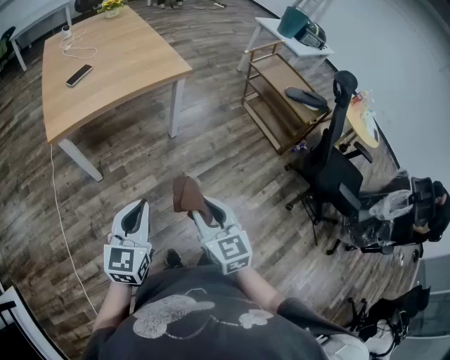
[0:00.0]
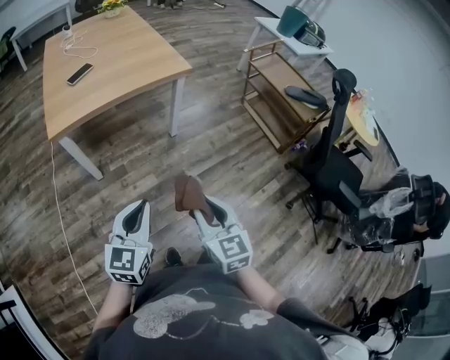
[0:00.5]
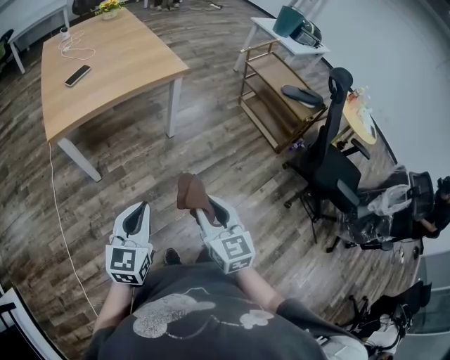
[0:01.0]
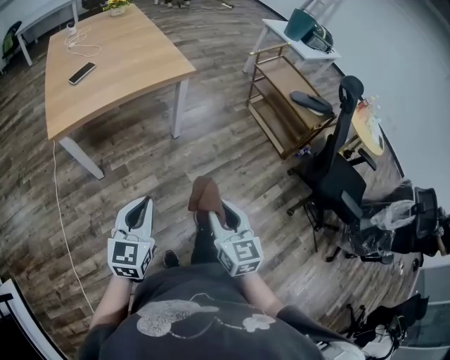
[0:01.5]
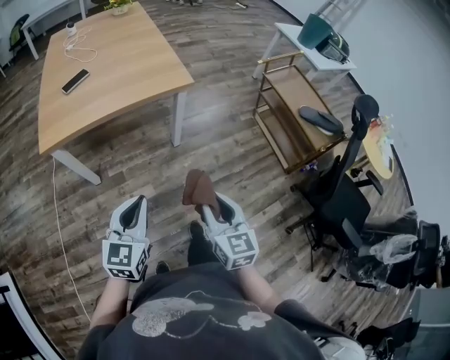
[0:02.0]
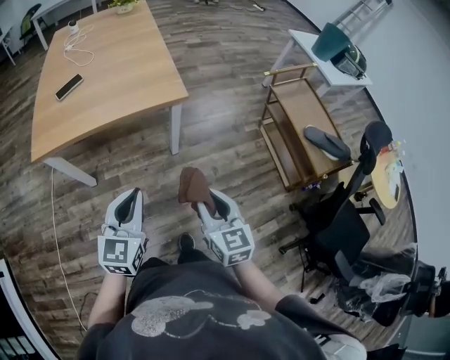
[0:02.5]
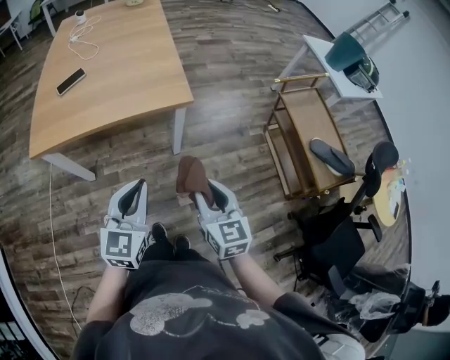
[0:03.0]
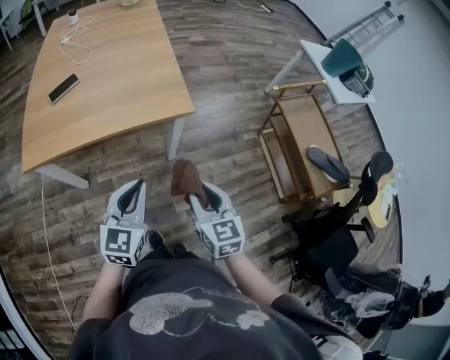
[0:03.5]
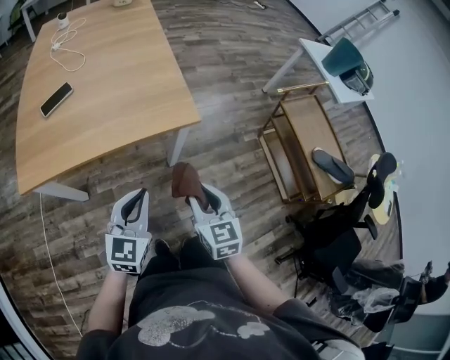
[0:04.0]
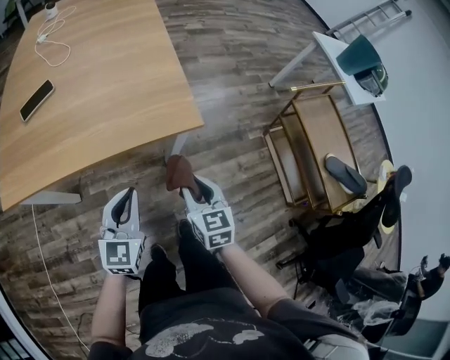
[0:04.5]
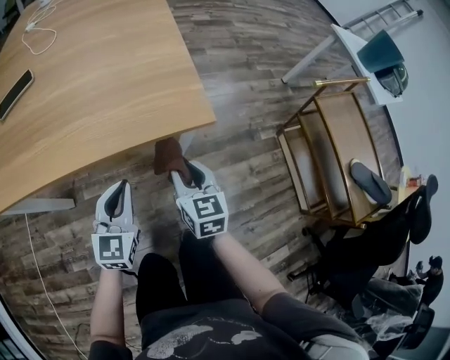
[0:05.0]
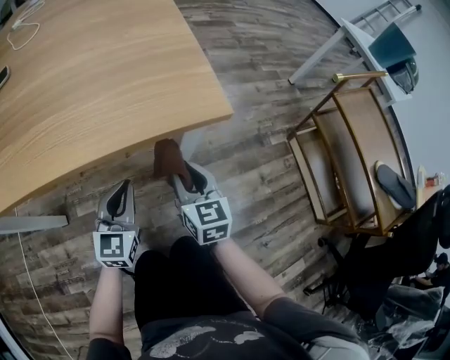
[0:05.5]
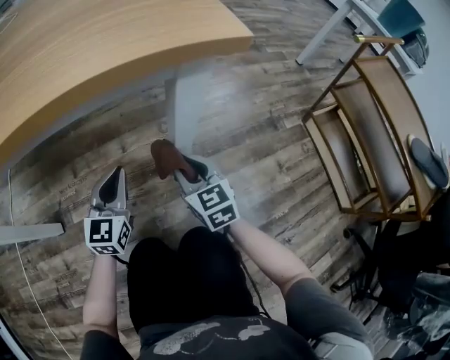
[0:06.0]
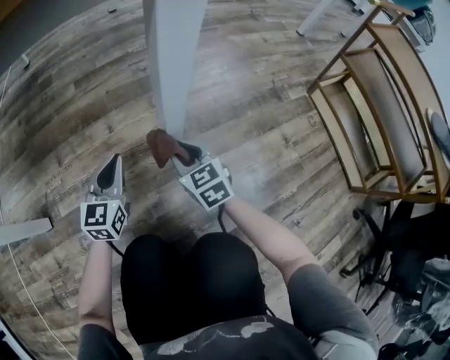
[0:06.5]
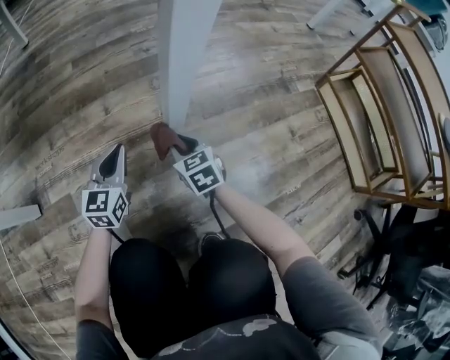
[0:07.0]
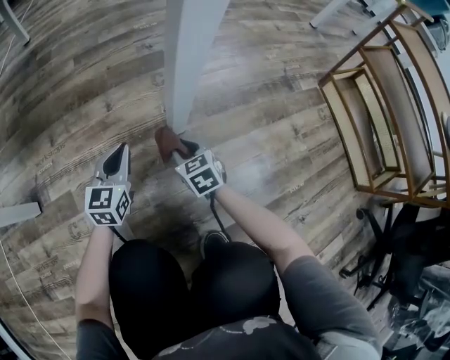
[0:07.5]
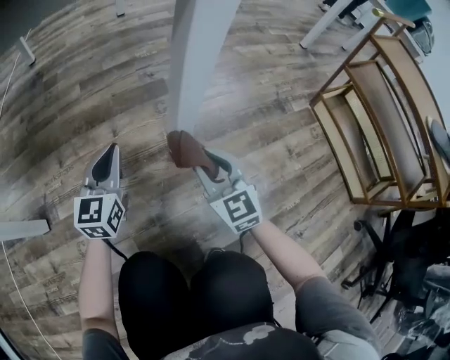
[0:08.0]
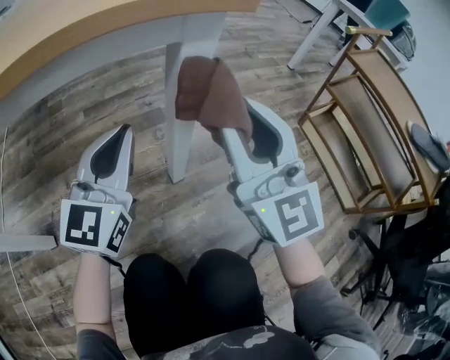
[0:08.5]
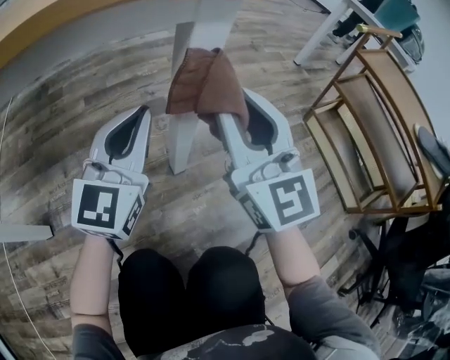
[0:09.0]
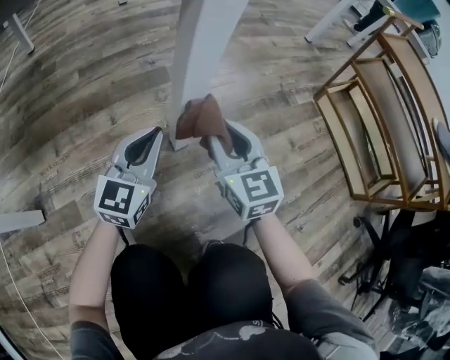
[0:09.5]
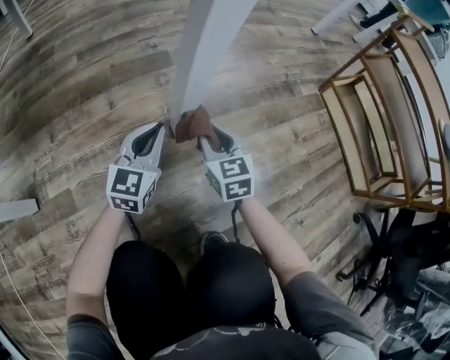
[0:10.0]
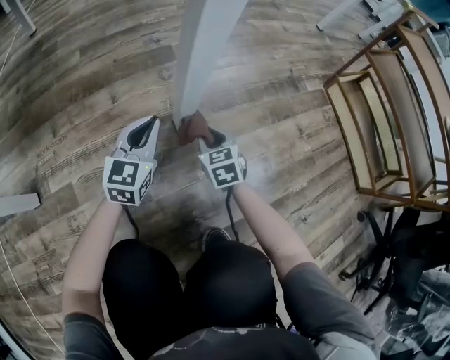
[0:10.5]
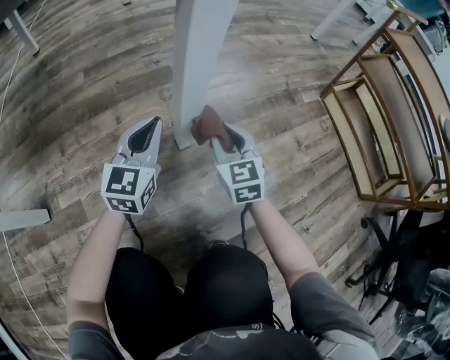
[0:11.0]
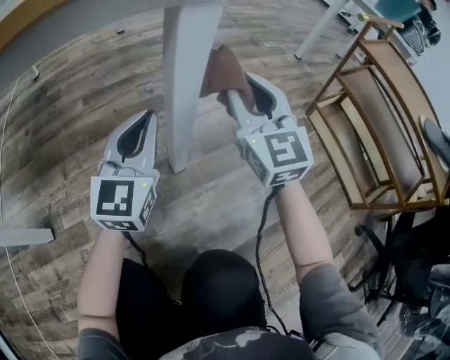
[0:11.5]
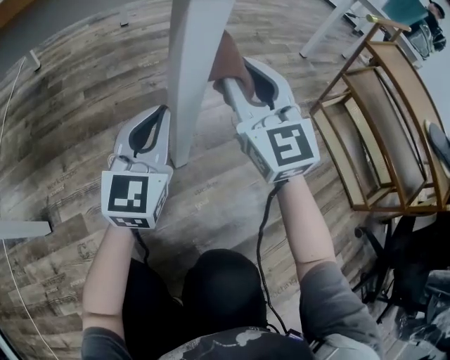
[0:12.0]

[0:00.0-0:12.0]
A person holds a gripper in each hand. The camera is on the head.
0:00.0 to 0:02.0: Both grippers move forward and to the right, approximately 15 cm.
0:02.0 to 0:04.0: Both grippers move forward, roughly 25 cm.
0:04.0 to 0:06.0: The grippers both shift downward and forward by about 50 cm.
0:06.0 to 0:08.0: The right gripper travels downward and back again, about 25 cm each way; the left gripper shifts some 10 cm downward.
0:08.0 to 0:10.0: The right gripper moves some 30 cm upward and comes back, and rotates approximately 20 degrees, while the left gripper is displaced to the right by about 10 cm, and reaches some 20 cm upward, then returns.
0:10.0 to 0:12.0: The right gripper shifts approximately 30 cm upward, and points its fingers about 30 degrees further upward; the left gripper heads upward, covering approximately 20 cm.

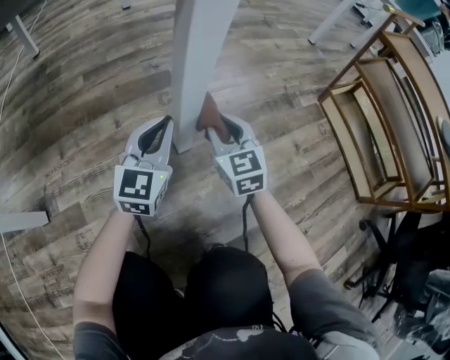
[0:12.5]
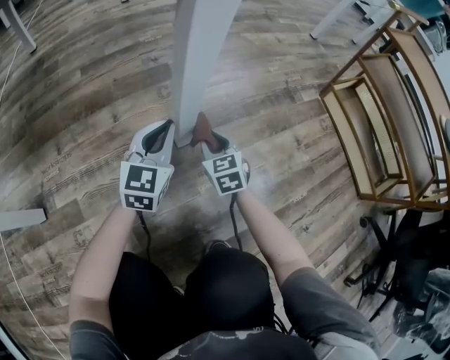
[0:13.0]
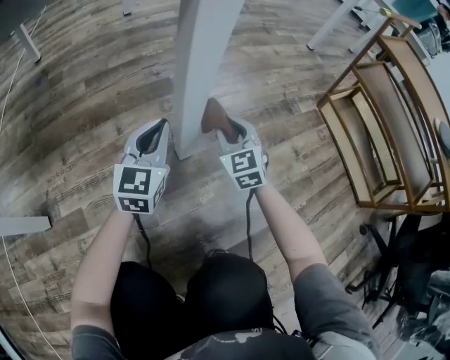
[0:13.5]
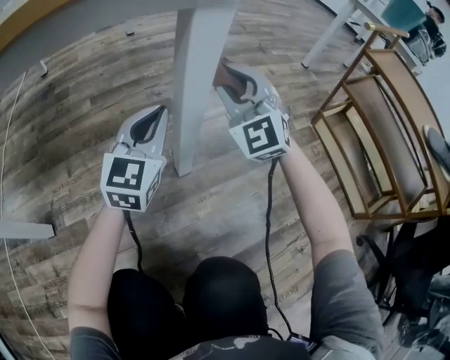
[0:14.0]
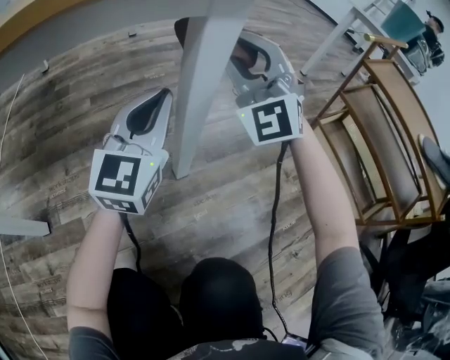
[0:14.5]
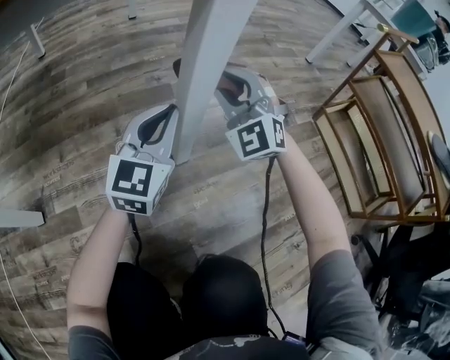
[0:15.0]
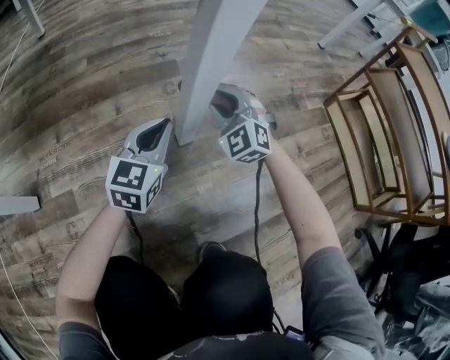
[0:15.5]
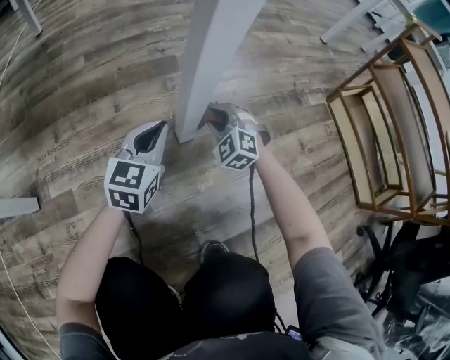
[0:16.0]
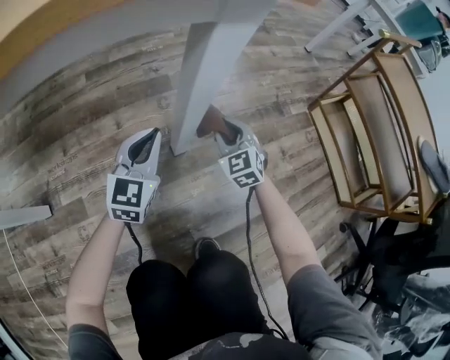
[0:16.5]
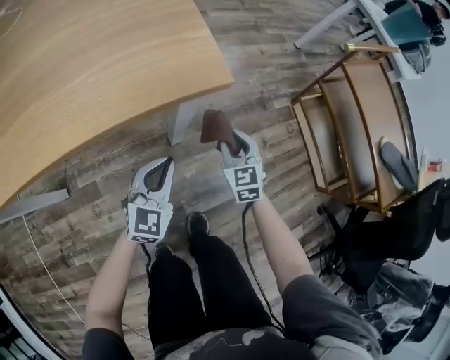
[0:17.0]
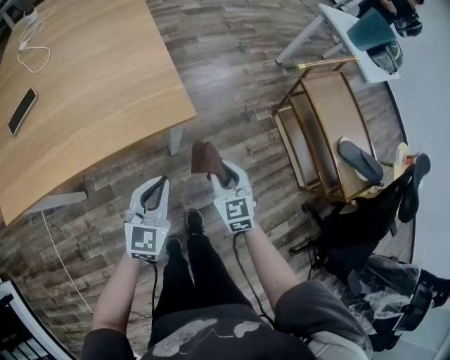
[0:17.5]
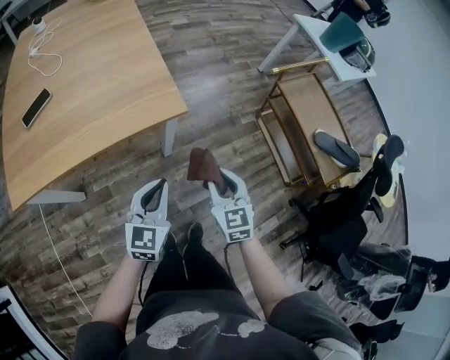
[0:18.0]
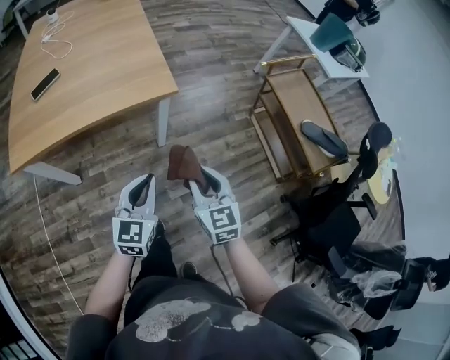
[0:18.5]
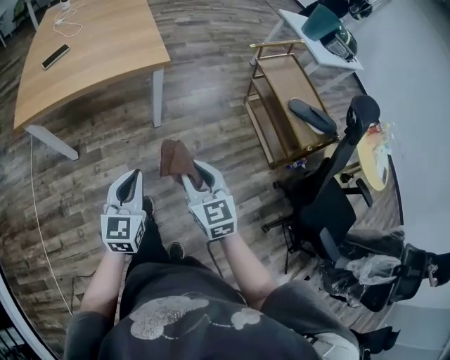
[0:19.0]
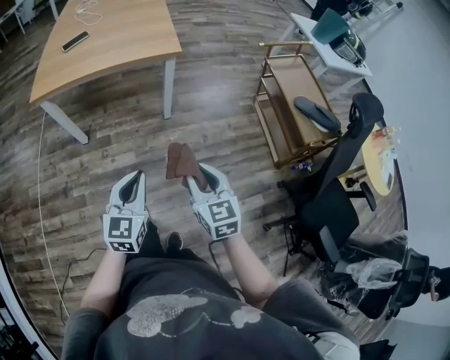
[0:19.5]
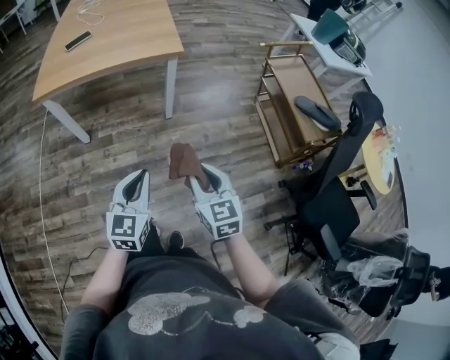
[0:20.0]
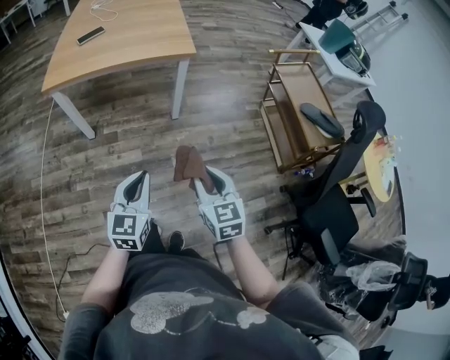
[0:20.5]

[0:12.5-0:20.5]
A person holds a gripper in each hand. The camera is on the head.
0:12.5 to 0:14.5: The right gripper moves upward, about 30 cm, and rotates around the line of its fingers by roughly 50 degrees, counterclockwise from behind. Meanwhile the left gripper shifts some 20 cm upward.
0:14.5 to 0:16.5: The left gripper goes roughly 15 cm downward. Meanwhile the right gripper heads downward, covering about 30 cm, and tips its fingers downward by about 40 degrees.
0:16.5 to 0:18.5: Both grippers travel together upward and backward, approximately 60 cm. The right gripper rotates about 30 degrees.
0:18.5 to 0:20.5: Both grippers travel together backward, some 25 cm.

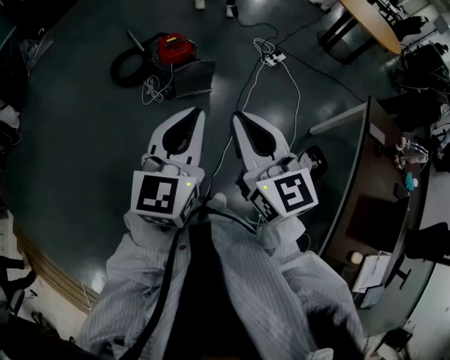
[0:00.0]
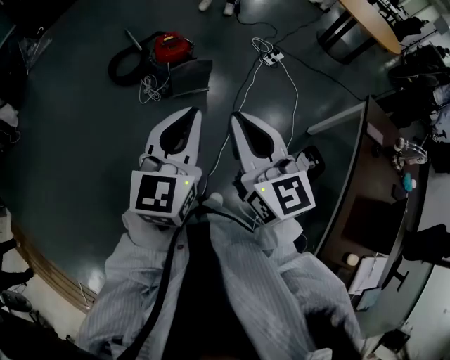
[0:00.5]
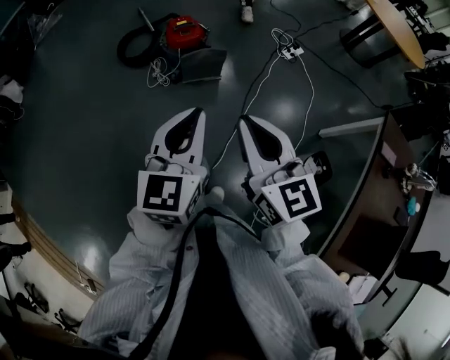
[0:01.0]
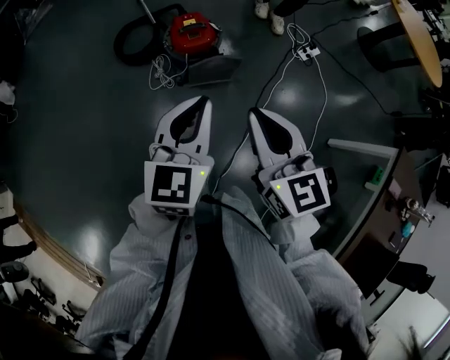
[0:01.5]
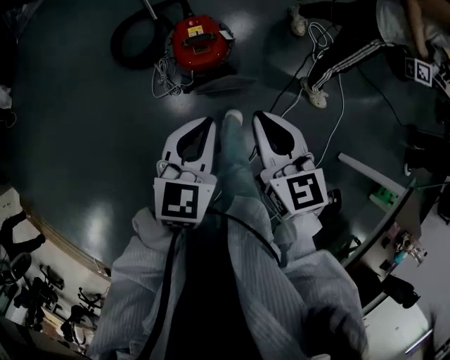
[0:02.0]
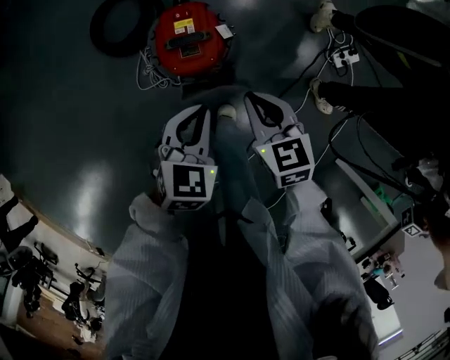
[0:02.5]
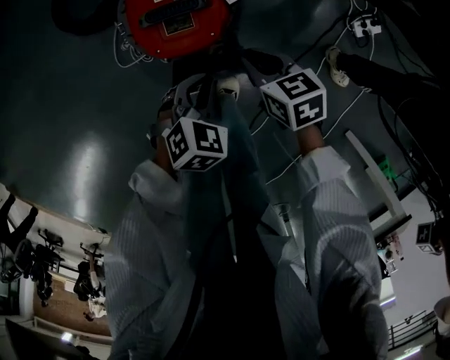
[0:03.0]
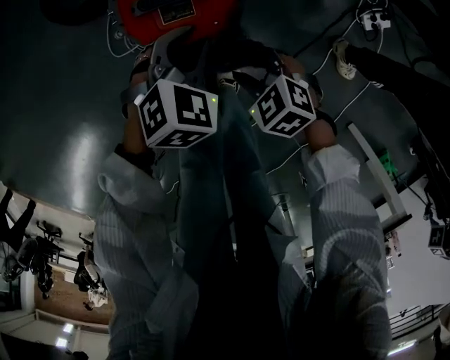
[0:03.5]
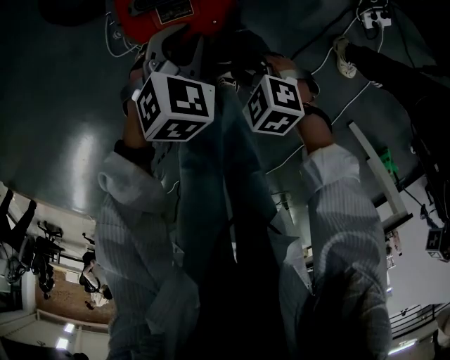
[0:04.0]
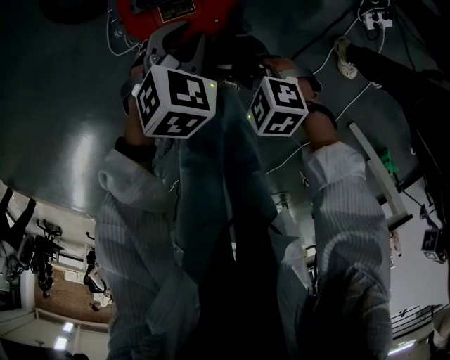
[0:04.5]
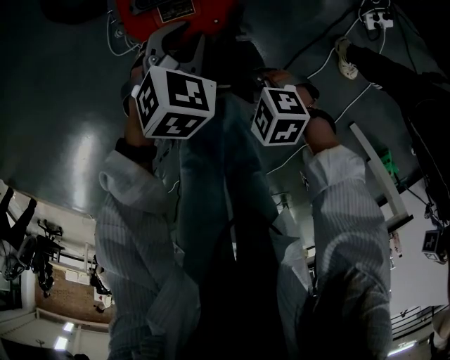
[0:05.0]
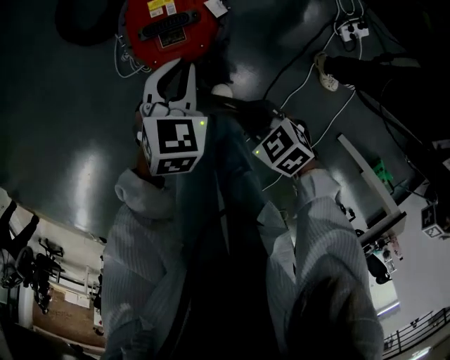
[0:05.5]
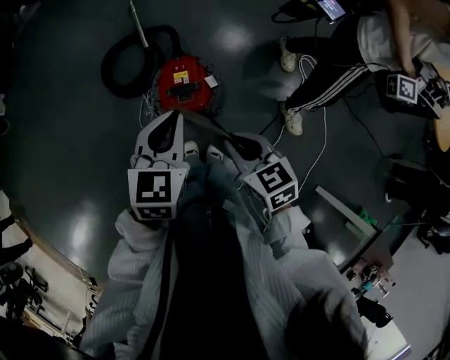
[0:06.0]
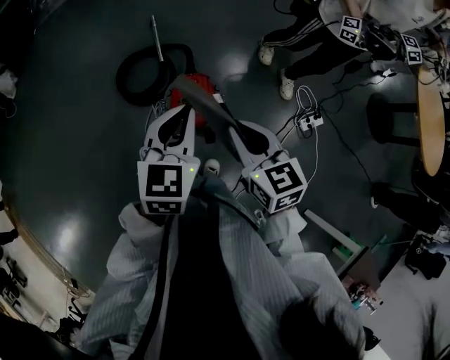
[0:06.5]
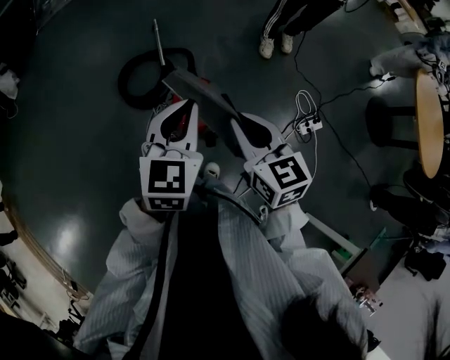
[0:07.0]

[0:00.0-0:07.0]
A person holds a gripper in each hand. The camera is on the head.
0:00.0 to 0:02.0: The two grippers travel together, forward, about 50 cm. Both grippers travel together downward, roughly 25 cm. The left gripper changes its angle by about 20 degrees. The right gripper turns by some 20 degrees.
0:02.0 to 0:03.5: The grippers both shift downward by roughly 50 cm. The left gripper swivels some 30 degrees, while the right gripper tips its fingers downward by some 40 degrees, and opens up.
0:03.5 to 0:05.0: The right gripper changes place by about 5 cm, swivels about 20 degrees, and closes up.
0:05.0 to 0:07.0: Both grippers move upward, approximately 60 cm. The right gripper tilts its fingers approximately 40 degrees upward, while the left gripper tips its fingers upward by approximately 40 degrees.
